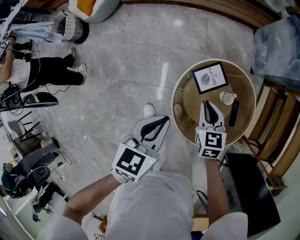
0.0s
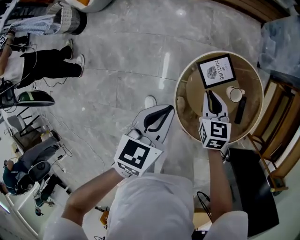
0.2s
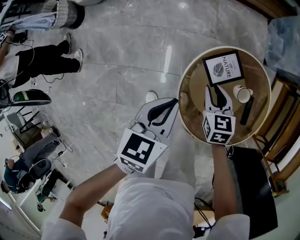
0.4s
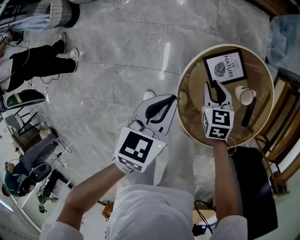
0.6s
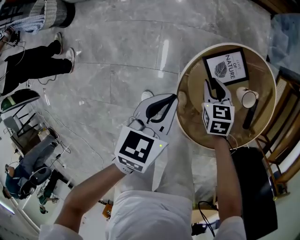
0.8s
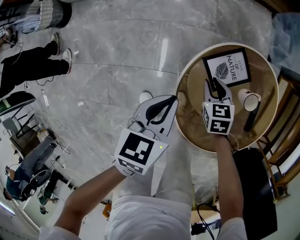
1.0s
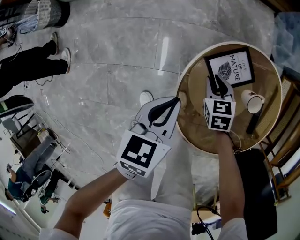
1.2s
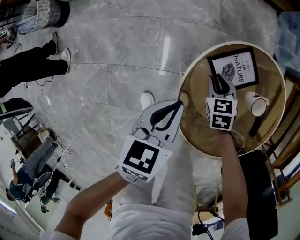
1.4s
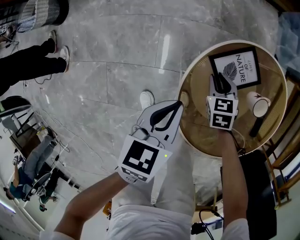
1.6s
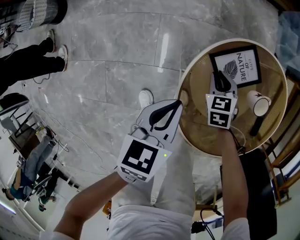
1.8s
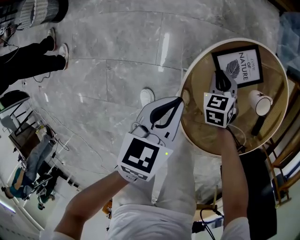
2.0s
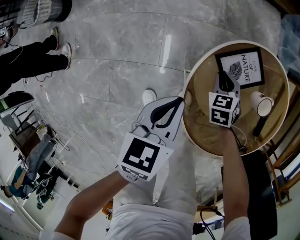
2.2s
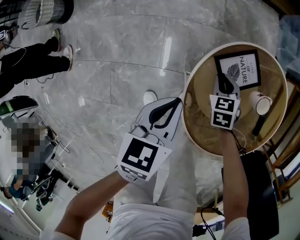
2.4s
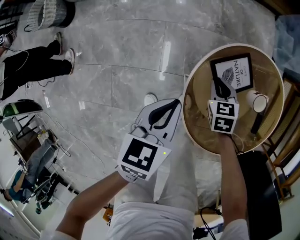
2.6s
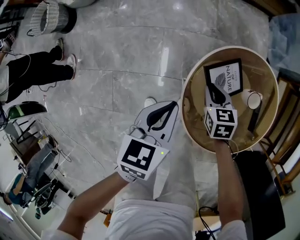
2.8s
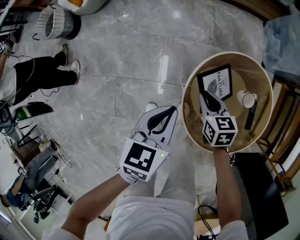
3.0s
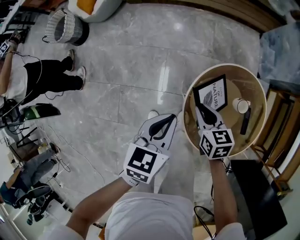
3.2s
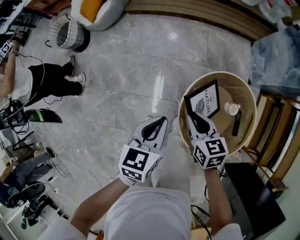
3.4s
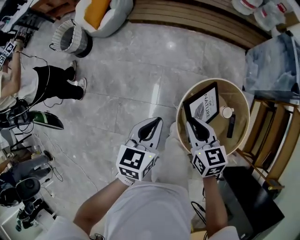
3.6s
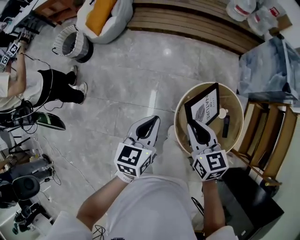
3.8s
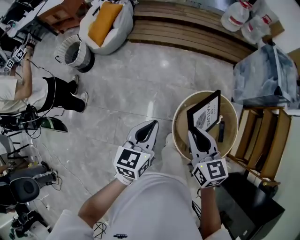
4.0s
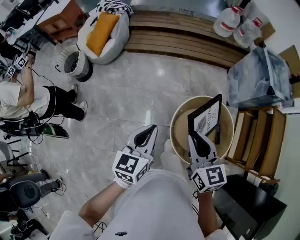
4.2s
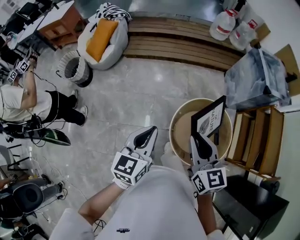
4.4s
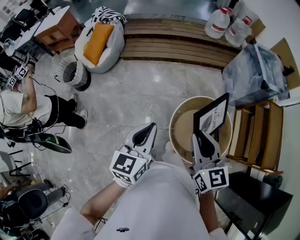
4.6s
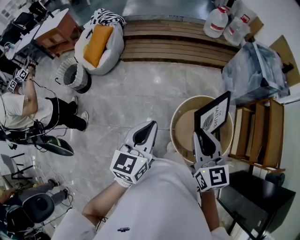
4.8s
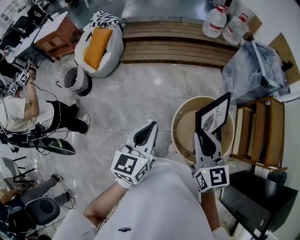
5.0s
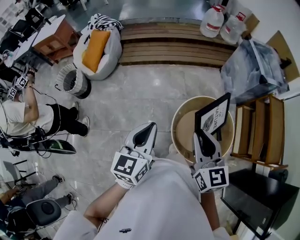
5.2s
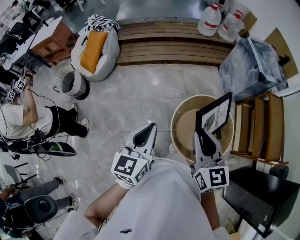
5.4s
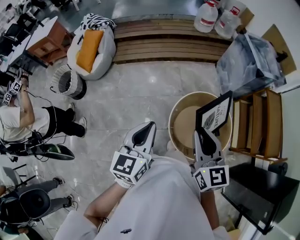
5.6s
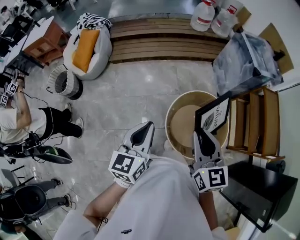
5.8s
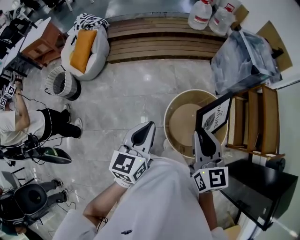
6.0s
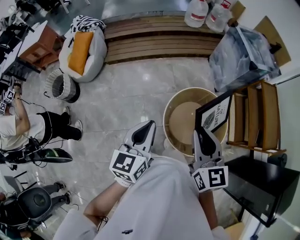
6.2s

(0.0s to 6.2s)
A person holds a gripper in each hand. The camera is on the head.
0.0s - 1.6s: Both grippers travel together downward, about 25 cm.
1.6s - 3.2s: Both grippers move upward, some 20 cm. The right gripper changes its angle by roughly 20 degrees.
3.2s - 4.6s: Both grippers travel together upward, some 35 cm. The right gripper changes its angle by some 40 degrees. The left gripper rotates about 20 degrees.
4.6s - 6.2s: There are only small adjustments of the grippers.

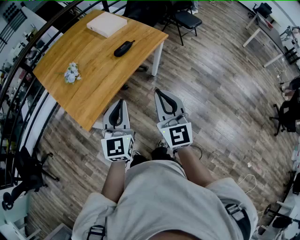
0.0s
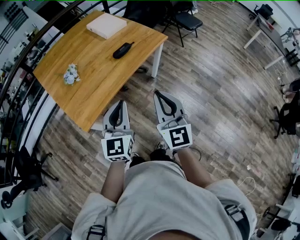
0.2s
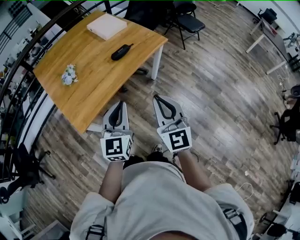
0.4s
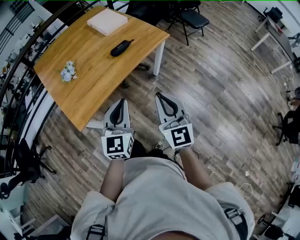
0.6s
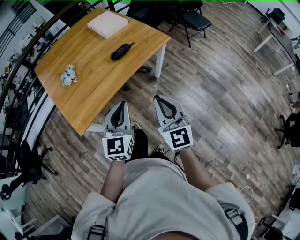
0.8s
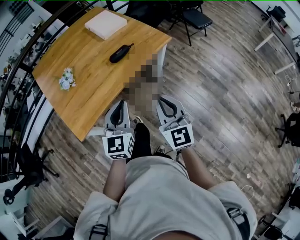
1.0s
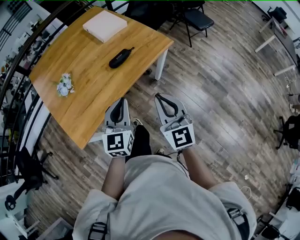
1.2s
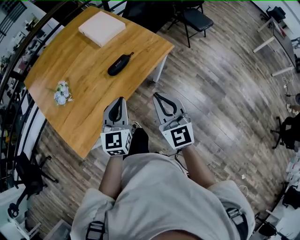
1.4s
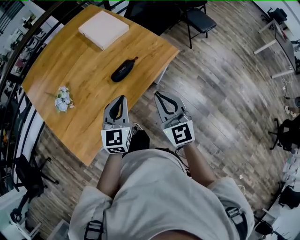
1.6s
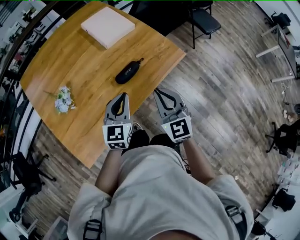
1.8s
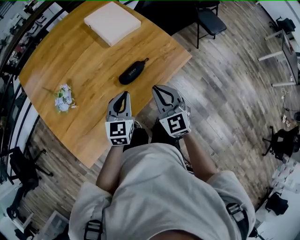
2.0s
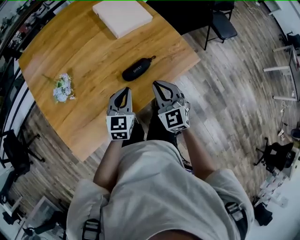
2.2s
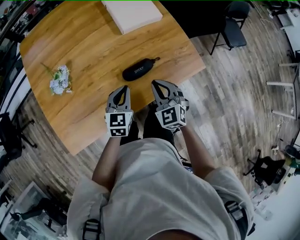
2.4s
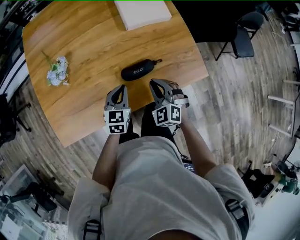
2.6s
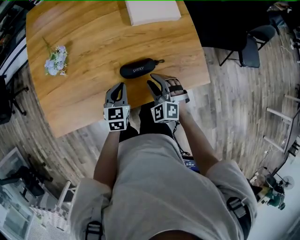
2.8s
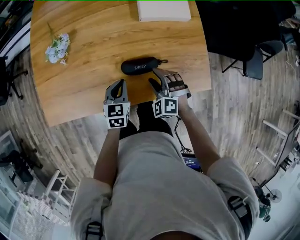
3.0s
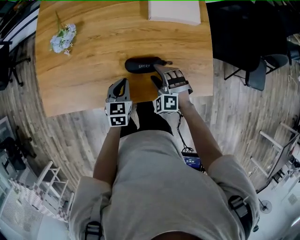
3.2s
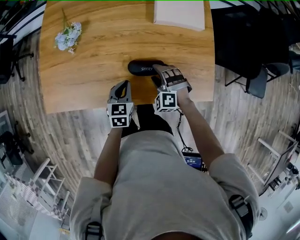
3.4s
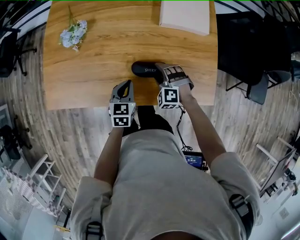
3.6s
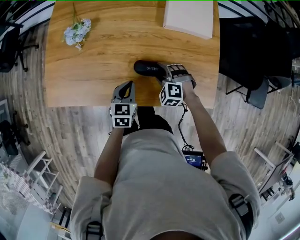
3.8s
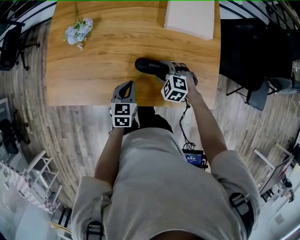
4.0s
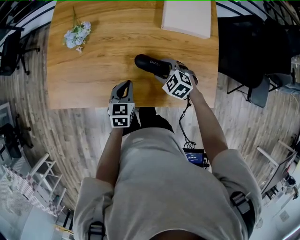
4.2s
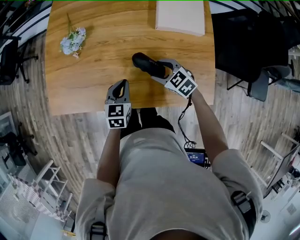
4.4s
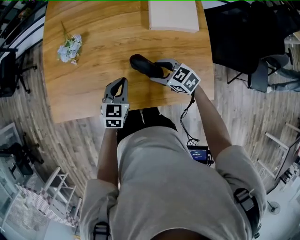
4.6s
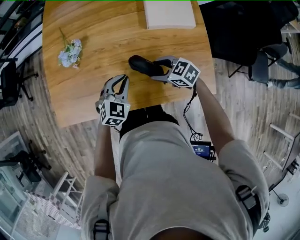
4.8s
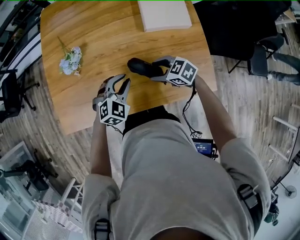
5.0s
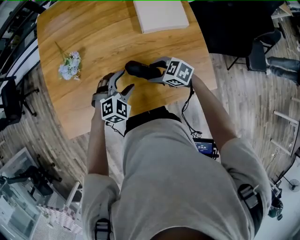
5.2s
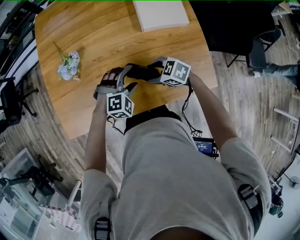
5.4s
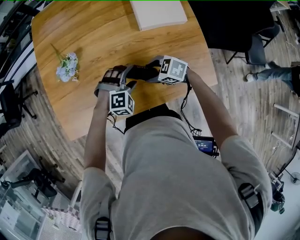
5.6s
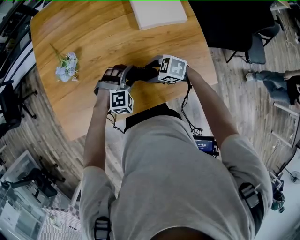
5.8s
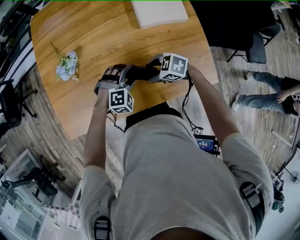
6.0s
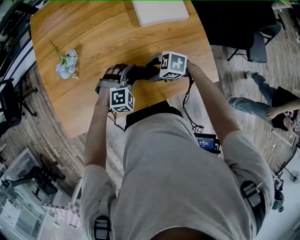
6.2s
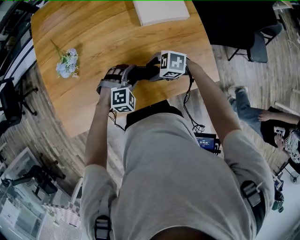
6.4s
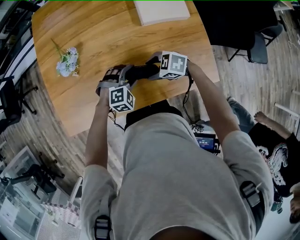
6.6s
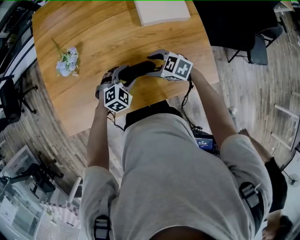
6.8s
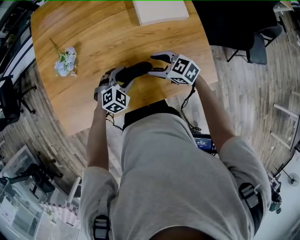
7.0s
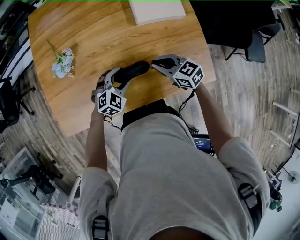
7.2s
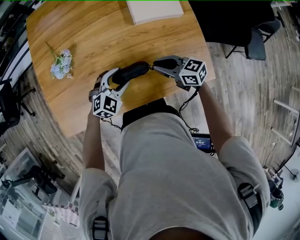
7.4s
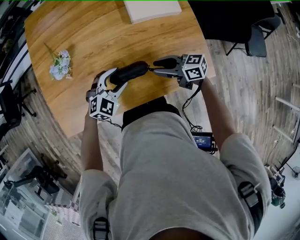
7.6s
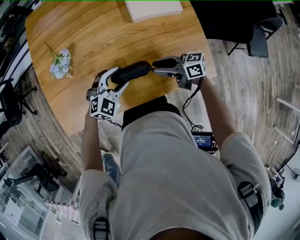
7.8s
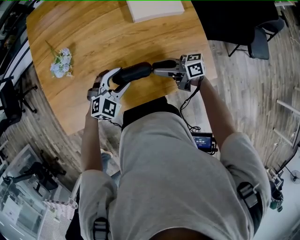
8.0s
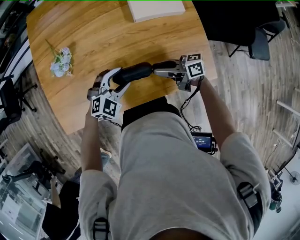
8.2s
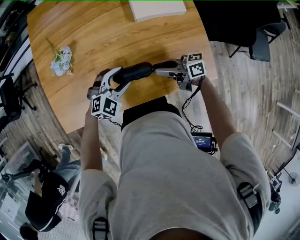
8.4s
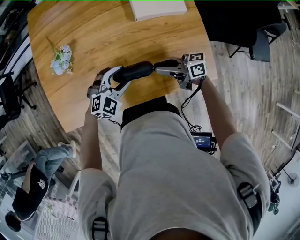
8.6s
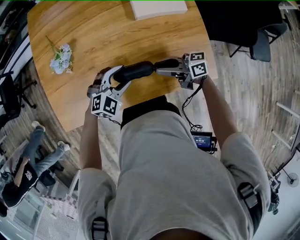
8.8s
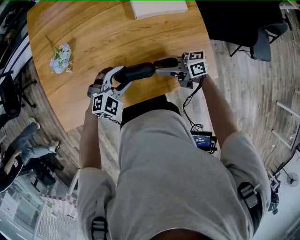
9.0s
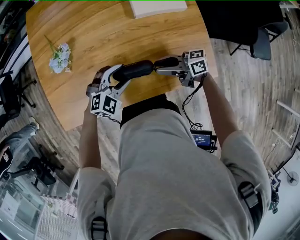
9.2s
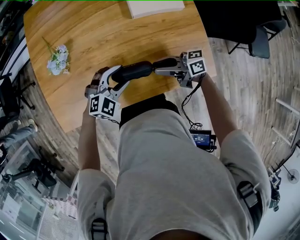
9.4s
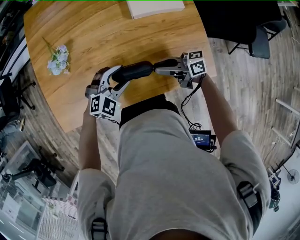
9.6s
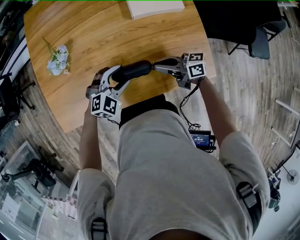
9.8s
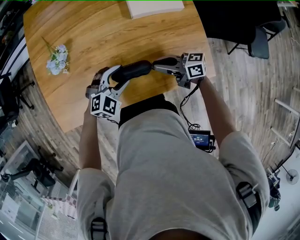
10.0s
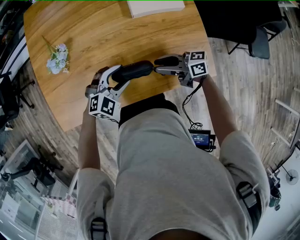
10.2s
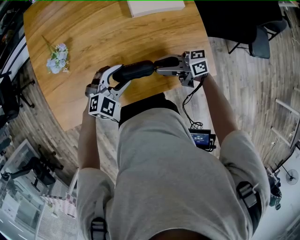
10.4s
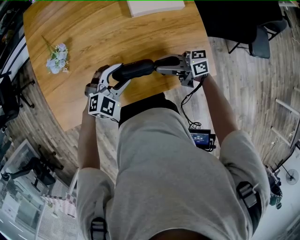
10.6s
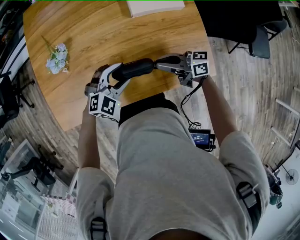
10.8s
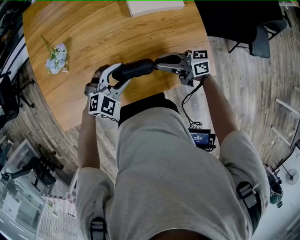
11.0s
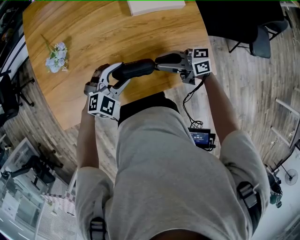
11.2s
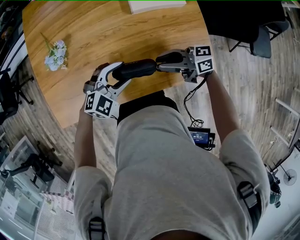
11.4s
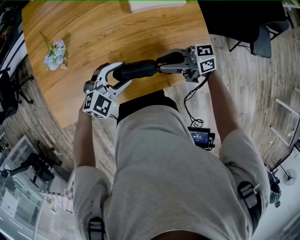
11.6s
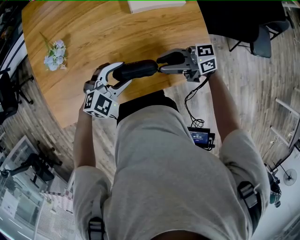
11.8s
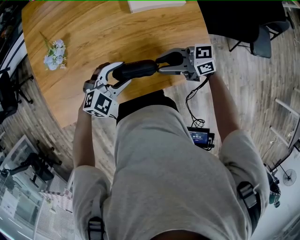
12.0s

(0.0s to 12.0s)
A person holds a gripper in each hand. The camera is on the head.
0.0s - 1.6s: The two grippers go some 30 cm forward.
1.6s - 3.0s: Both grippers move downward, approximately 25 cm. The right gripper tips its fingers downward by roughly 40 degrees, and opens its fingers, while the left gripper turns by about 40 degrees.
3.0s - 4.4s: The right gripper shifts by roughly 5 cm, and changes its angle by about 40 degrees.
4.4s - 6.0s: The left gripper moves some 5 cm, rolls clockwise, seen from behind, by about 80 degrees, and opens up. The right gripper rotates about 20 degrees.
6.0s - 7.6s: The left gripper turns by roughly 30 degrees, while the right gripper shifts by approximately 10 cm, tips its fingers upward by some 30 degrees, and closes its fingers.
9.0s - 10.4s: The right gripper closes and opens again.
10.4s - 12.0s: The right gripper closes, then reopens.

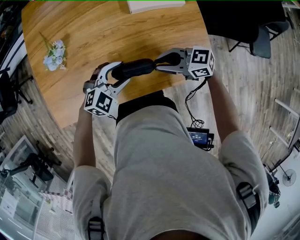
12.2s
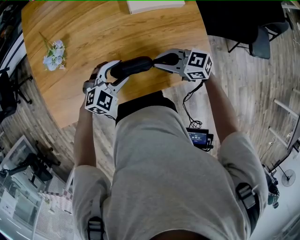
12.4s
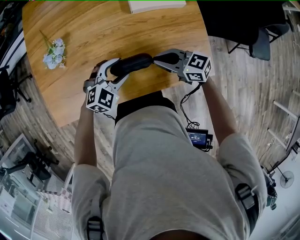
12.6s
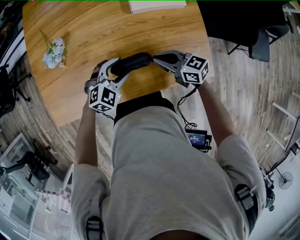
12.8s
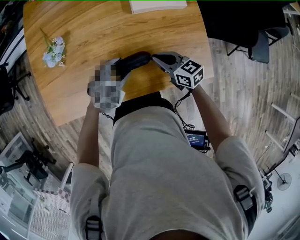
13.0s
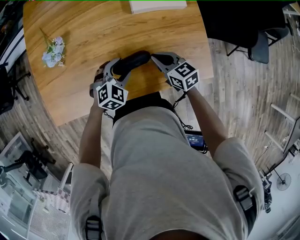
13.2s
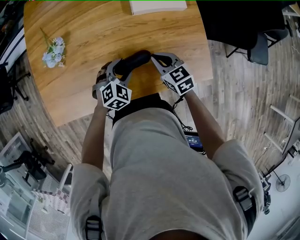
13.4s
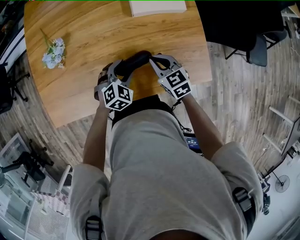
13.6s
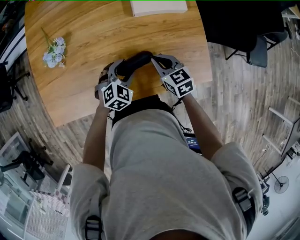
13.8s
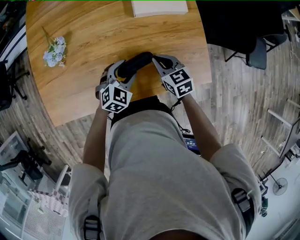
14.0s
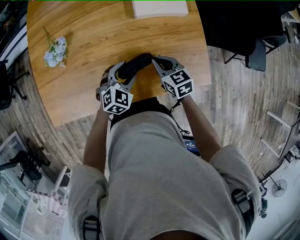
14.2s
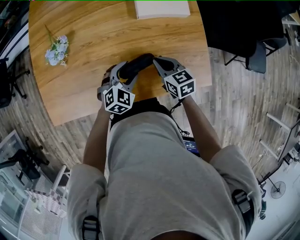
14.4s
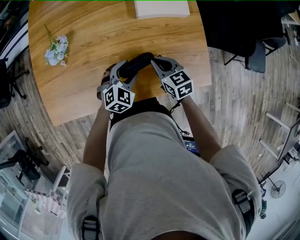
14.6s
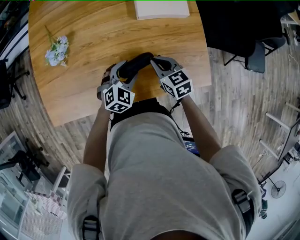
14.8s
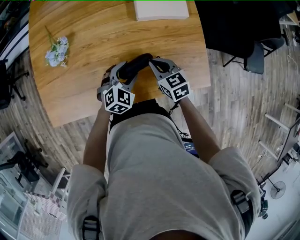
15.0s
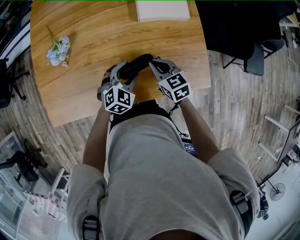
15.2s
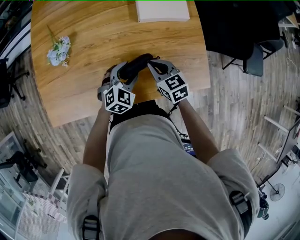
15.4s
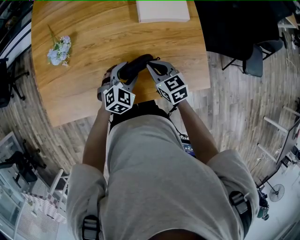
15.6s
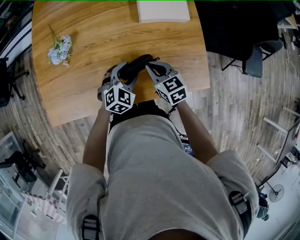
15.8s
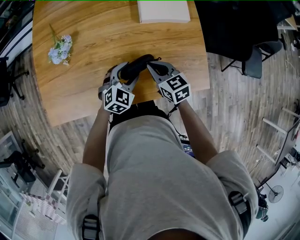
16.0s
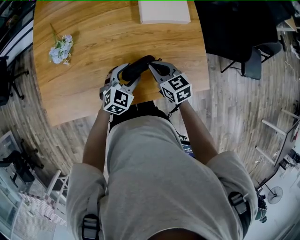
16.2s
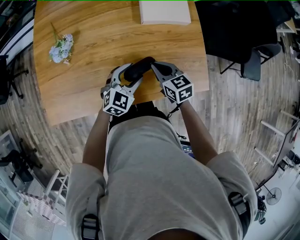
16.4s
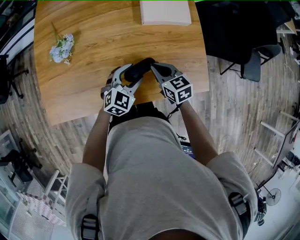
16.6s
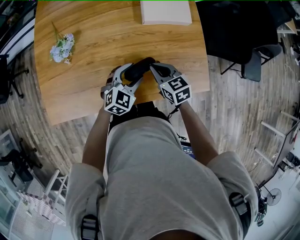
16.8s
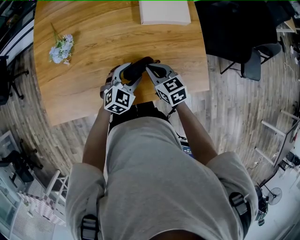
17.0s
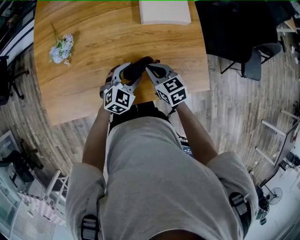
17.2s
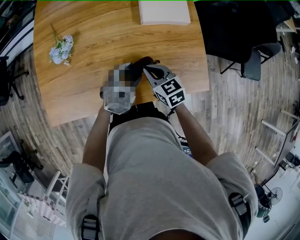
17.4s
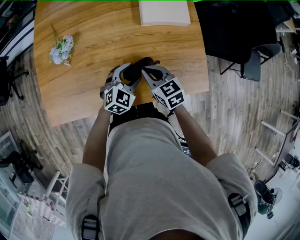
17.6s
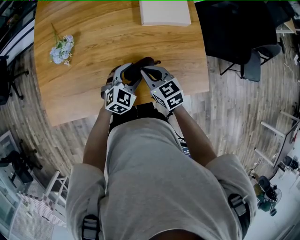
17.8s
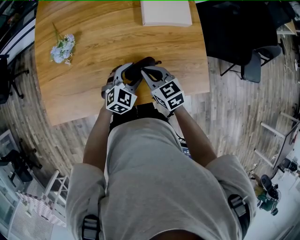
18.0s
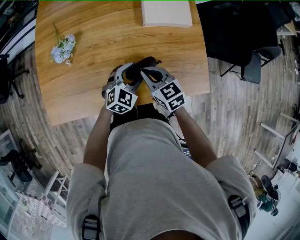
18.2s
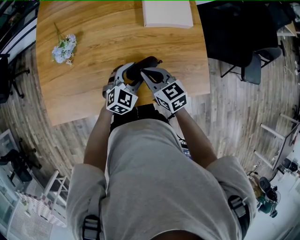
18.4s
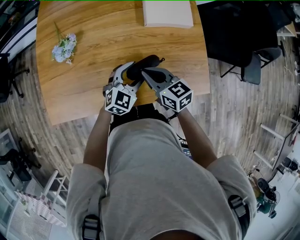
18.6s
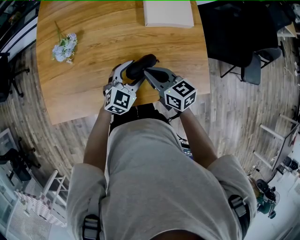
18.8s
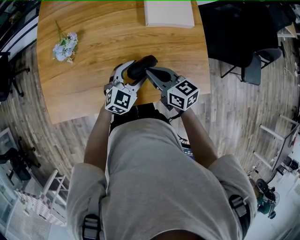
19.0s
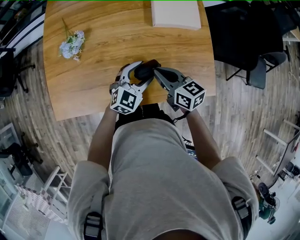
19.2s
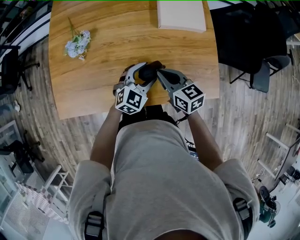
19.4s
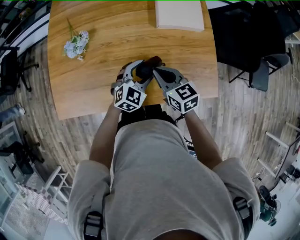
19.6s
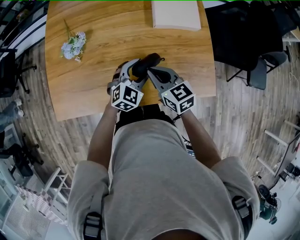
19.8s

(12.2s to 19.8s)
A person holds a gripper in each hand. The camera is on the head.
12.2s - 13.8s: The left gripper is displaced downward by roughly 5 cm, and rotates about 20 degrees; the right gripper moves some 5 cm, and changes its angle by some 40 degrees.
13.8s - 15.2s: There are only small adjustments of the grippers.
15.2s - 16.8s: The grippers stay close to where they were, moving slightly.
16.8s - 18.2s: The right gripper changes place by some 5 cm.
